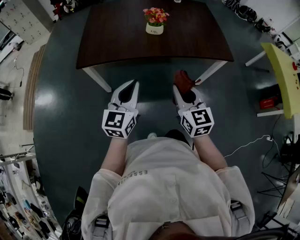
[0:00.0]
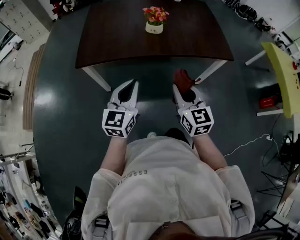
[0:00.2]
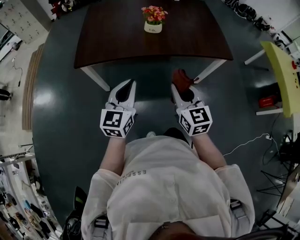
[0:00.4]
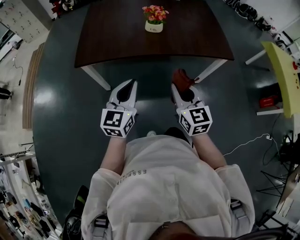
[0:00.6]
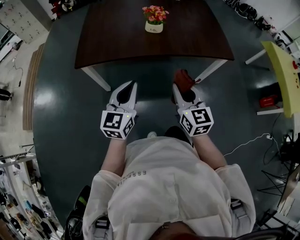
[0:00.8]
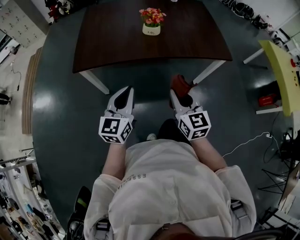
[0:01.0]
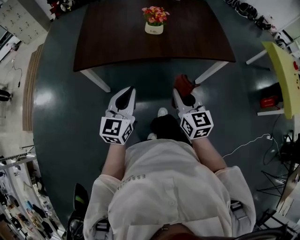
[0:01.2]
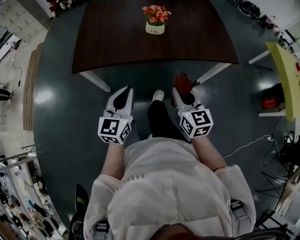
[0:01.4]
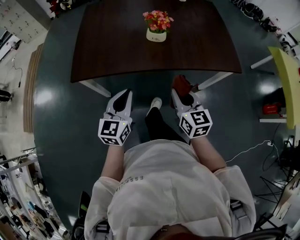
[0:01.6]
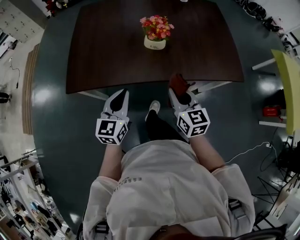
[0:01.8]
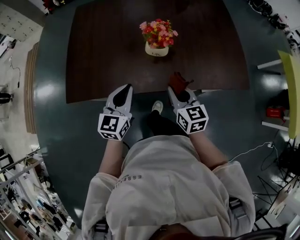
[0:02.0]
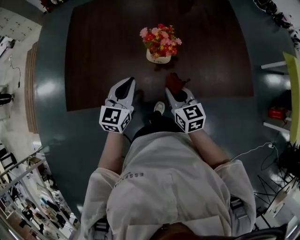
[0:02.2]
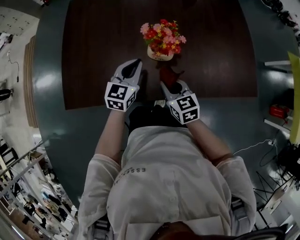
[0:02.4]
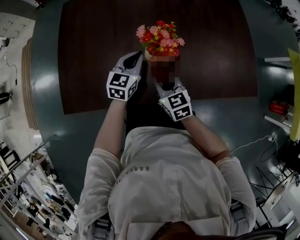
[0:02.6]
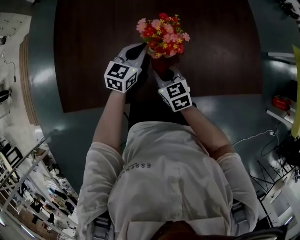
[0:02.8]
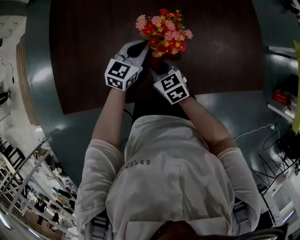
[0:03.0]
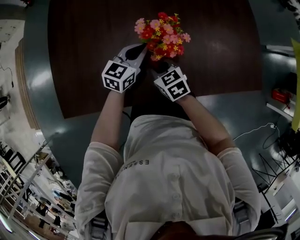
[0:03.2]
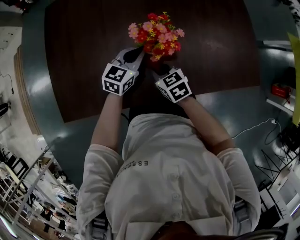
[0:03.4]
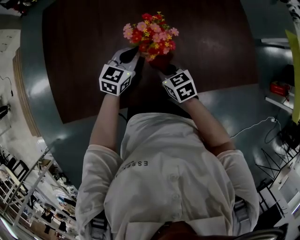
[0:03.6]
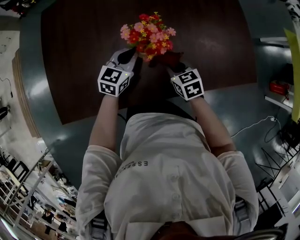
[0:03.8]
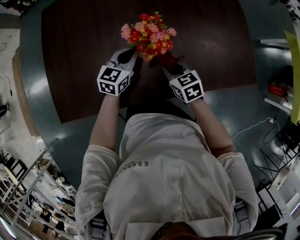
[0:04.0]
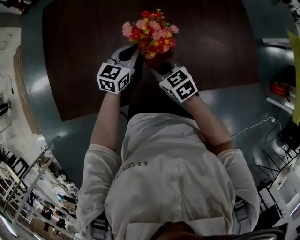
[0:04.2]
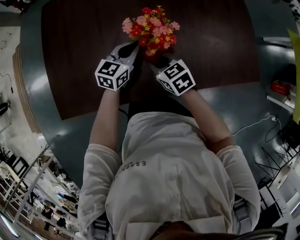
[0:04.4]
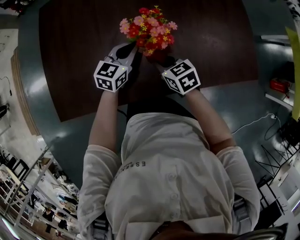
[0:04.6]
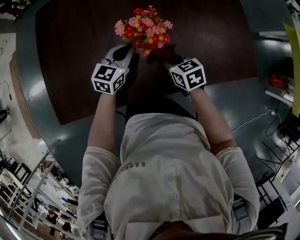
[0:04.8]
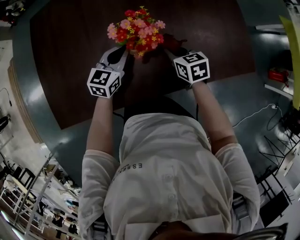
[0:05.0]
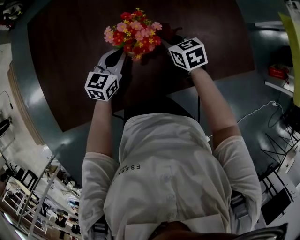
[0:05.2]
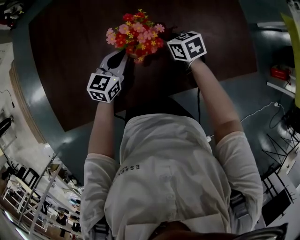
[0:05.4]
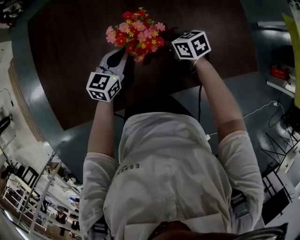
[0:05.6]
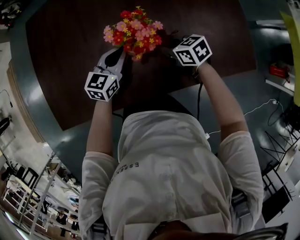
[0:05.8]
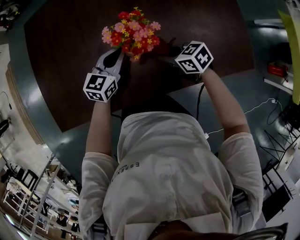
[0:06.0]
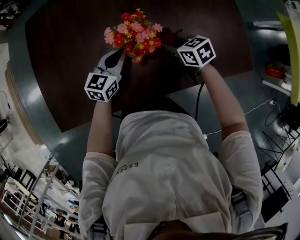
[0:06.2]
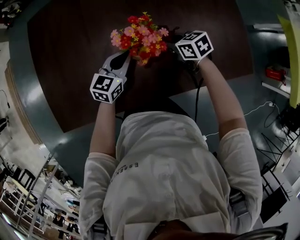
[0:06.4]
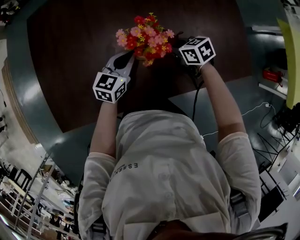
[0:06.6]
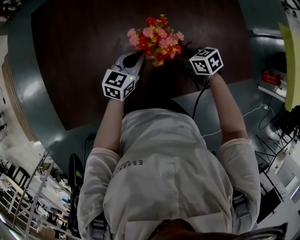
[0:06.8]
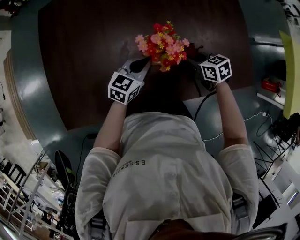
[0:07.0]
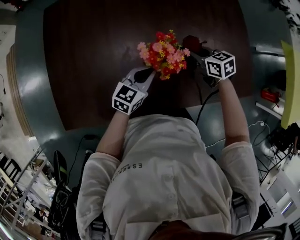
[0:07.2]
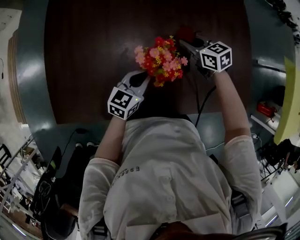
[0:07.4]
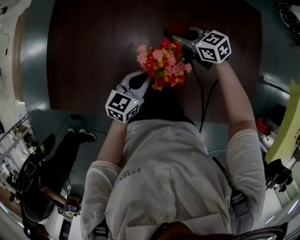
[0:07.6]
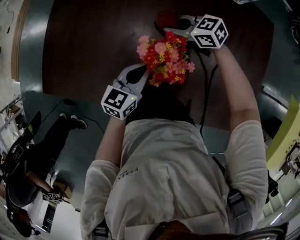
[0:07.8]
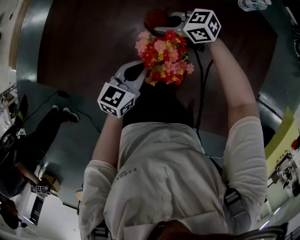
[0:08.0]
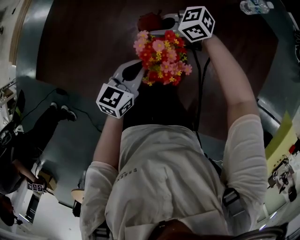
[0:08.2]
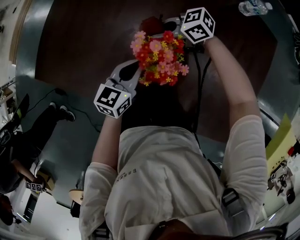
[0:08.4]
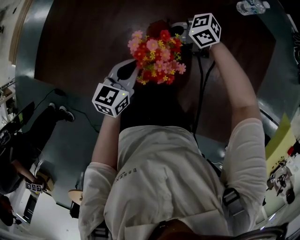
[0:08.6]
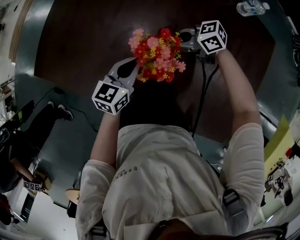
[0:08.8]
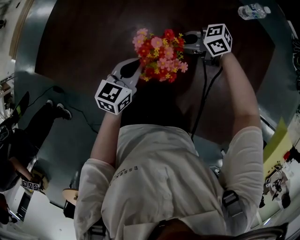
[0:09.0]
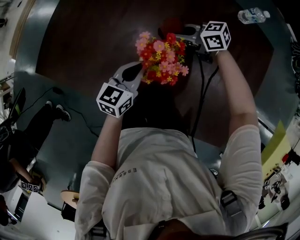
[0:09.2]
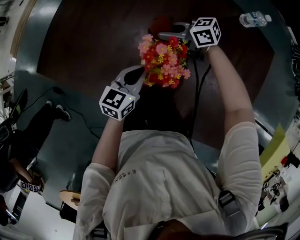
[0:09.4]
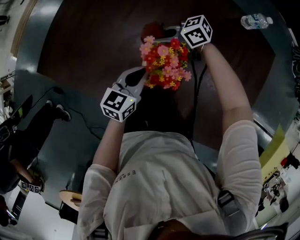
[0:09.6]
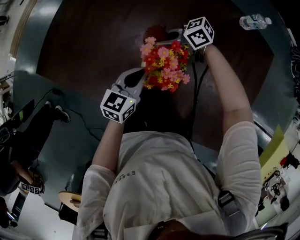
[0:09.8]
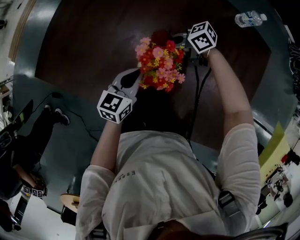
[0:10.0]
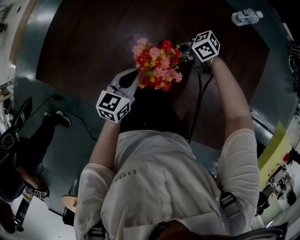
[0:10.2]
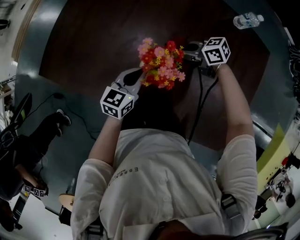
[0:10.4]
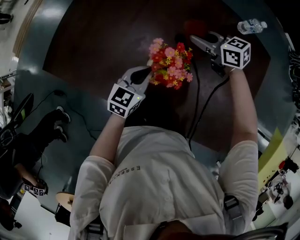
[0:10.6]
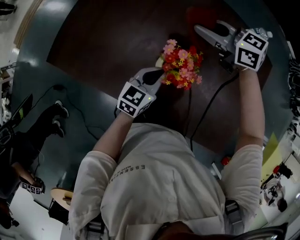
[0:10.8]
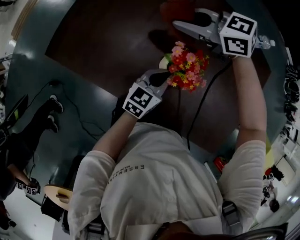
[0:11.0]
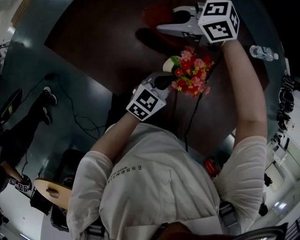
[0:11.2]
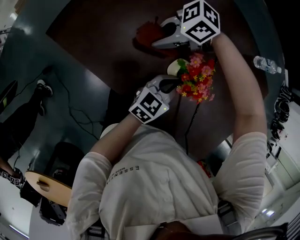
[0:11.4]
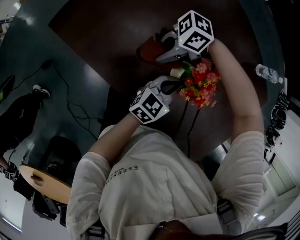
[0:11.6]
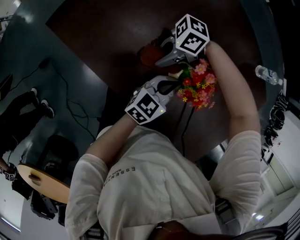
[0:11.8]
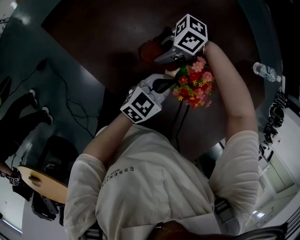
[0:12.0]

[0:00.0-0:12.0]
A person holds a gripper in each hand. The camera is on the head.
0:00.0 to 0:01.6: The grippers both shift forward and downward by roughly 15 cm.
0:01.6 to 0:03.0: The left gripper heads forward, covering roughly 40 cm, and swivels approximately 20 degrees; the right gripper travels forward and downward by roughly 35 cm, and rotates about 30 degrees.
0:03.0 to 0:04.4: The right gripper travels to the right and back again, some 10 cm each way.
0:04.4 to 0:06.0: The right gripper shifts approximately 10 cm to the right.
0:06.0 to 0:07.6: The right gripper moves forward and backward over some 20 cm, changing direction 2 times, and changes its angle by approximately 20 degrees.
0:07.6 to 0:09.0: The left gripper changes its angle by about 20 degrees; the right gripper rotates some 40 degrees.
0:10.4 to 0:12.0: The right gripper reaches about 20 cm upward, then returns, and swivels some 60 degrees.

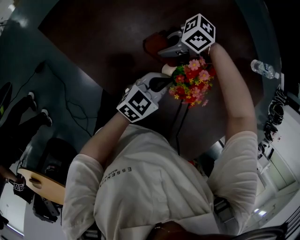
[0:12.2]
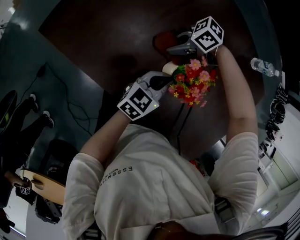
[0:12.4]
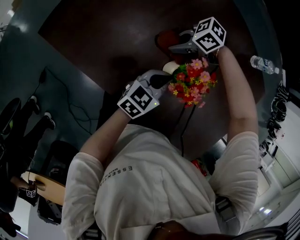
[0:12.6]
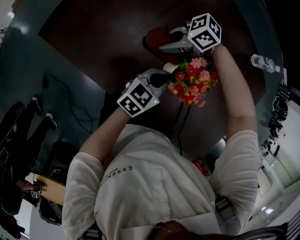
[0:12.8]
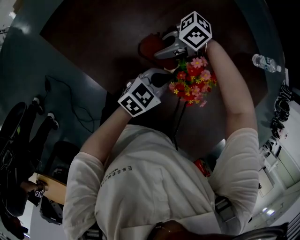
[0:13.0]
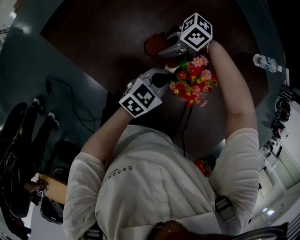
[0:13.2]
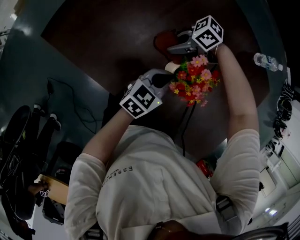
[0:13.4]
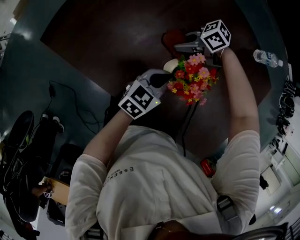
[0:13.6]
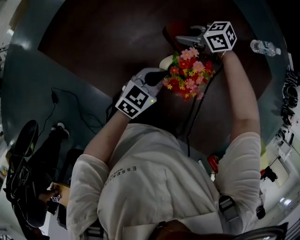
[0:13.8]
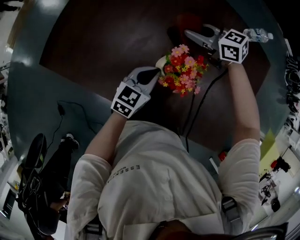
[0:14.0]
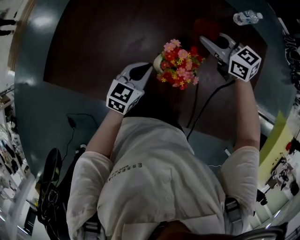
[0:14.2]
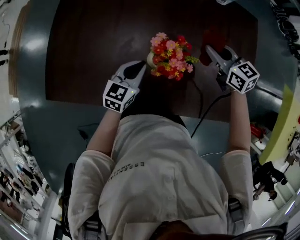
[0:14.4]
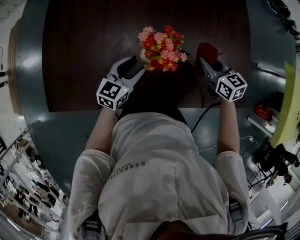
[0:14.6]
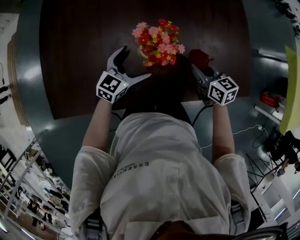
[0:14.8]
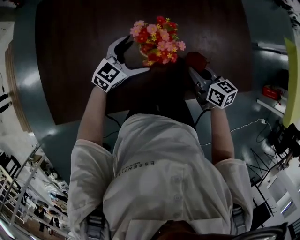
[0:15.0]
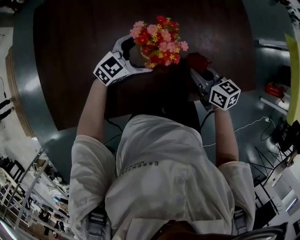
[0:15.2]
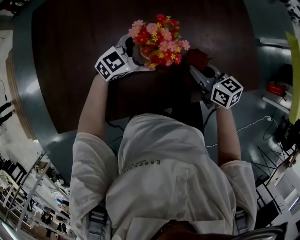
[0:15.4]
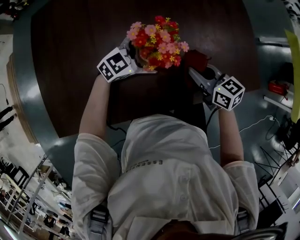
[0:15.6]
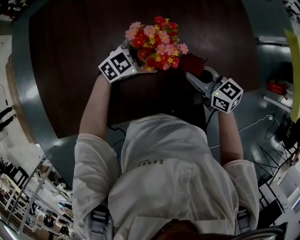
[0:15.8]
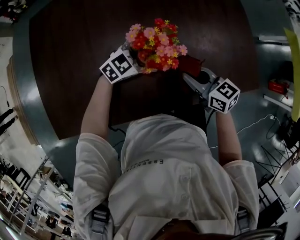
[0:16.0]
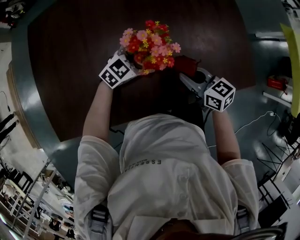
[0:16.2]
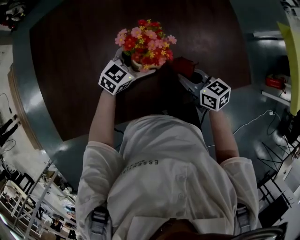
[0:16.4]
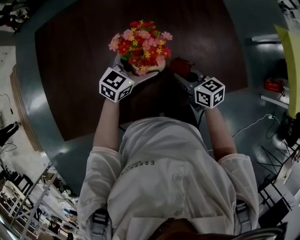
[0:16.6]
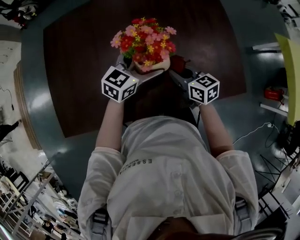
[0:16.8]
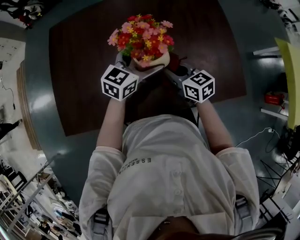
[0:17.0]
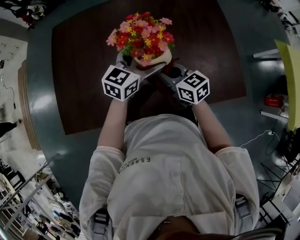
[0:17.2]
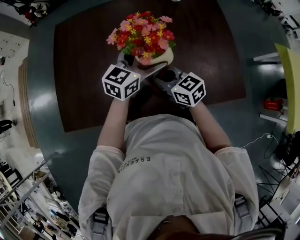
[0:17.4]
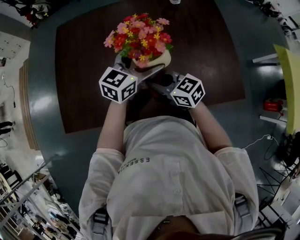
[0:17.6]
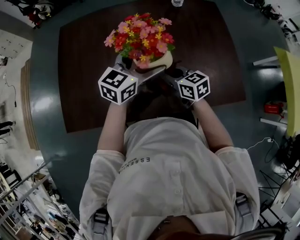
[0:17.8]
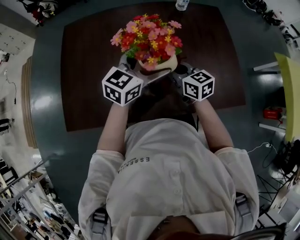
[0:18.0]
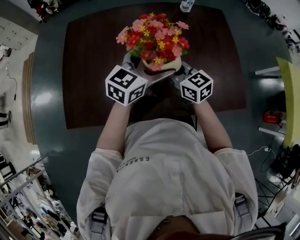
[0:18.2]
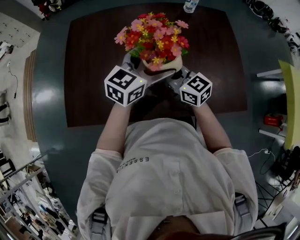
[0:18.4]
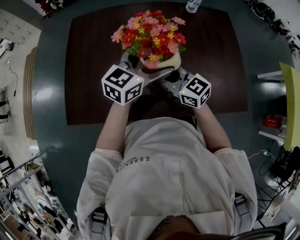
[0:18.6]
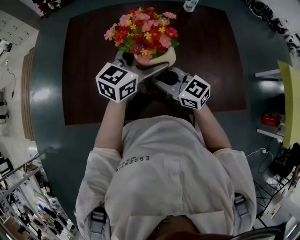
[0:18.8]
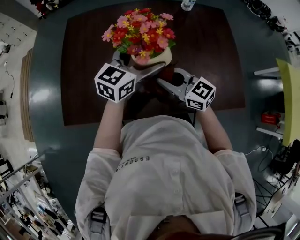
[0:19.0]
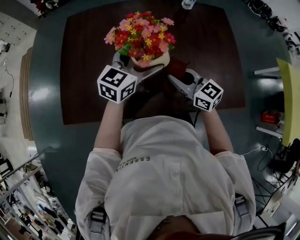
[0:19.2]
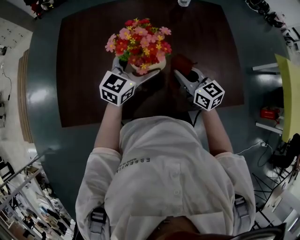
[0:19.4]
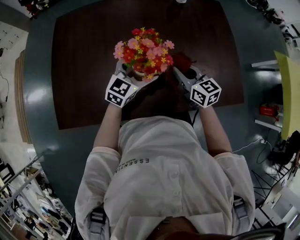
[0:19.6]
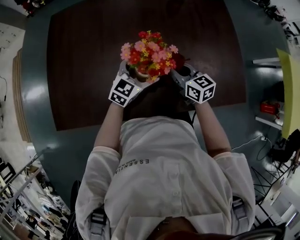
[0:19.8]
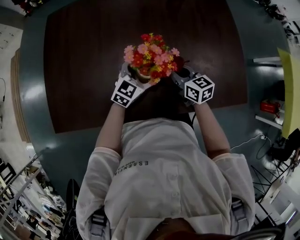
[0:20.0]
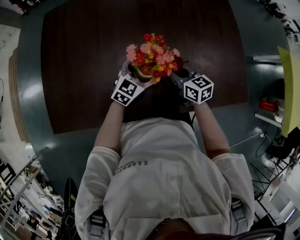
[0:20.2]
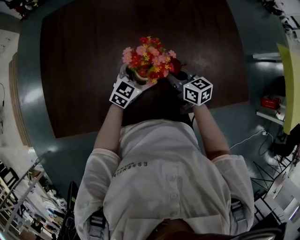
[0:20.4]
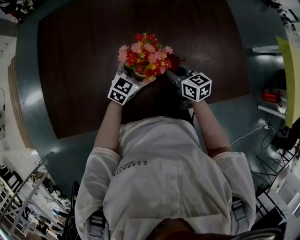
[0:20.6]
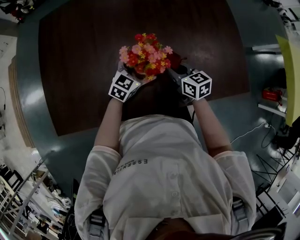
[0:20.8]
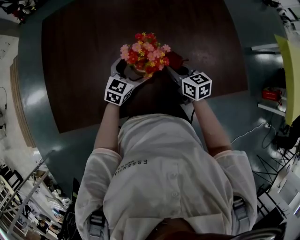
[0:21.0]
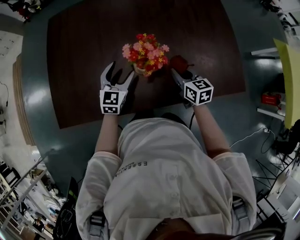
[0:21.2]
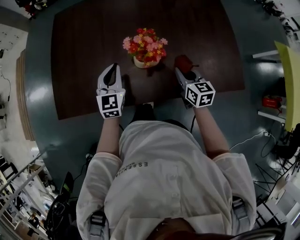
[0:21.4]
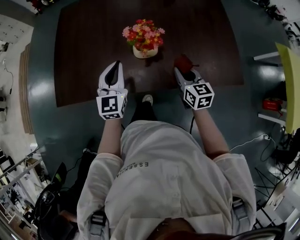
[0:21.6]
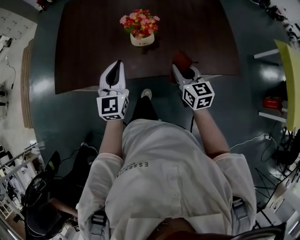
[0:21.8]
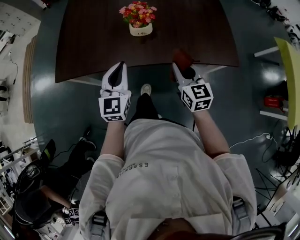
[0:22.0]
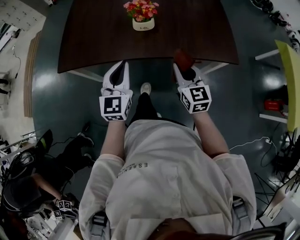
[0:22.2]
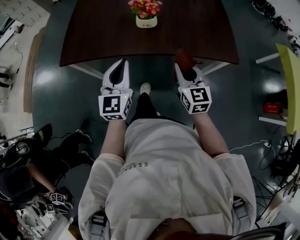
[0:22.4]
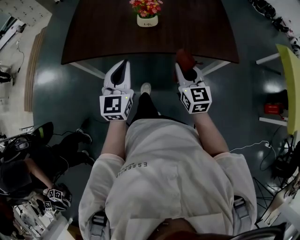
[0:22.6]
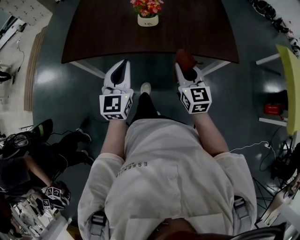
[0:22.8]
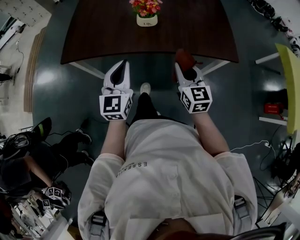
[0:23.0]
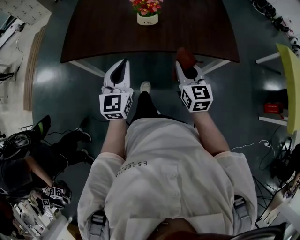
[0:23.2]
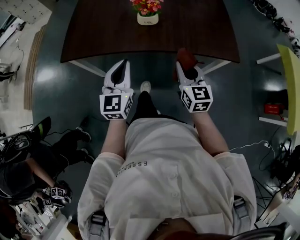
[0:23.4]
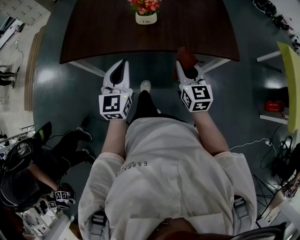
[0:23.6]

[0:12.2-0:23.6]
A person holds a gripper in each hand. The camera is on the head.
0:12.2 to 0:13.6: The right gripper moves roughly 10 cm.
0:13.6 to 0:15.0: The left gripper changes its angle by some 50 degrees, and opens its fingers. The right gripper goes upward and returns, roughly 15 cm each way, and turns by roughly 100 degrees.
0:15.0 to 0:16.4: The left gripper moves approximately 5 cm.
0:16.4 to 0:17.8: The right gripper shifts roughly 10 cm to the left and upward; the left gripper goes about 20 cm upward, and turns by about 20 degrees.
0:17.8 to 0:19.4: The right gripper goes to the left and returns, roughly 5 cm each way. Meanwhile the left gripper ends up some 5 cm from where it was.
0:19.4 to 0:20.8: The two grippers go some 15 cm downward.
0:20.8 to 0:22.2: The grippers both shift backward and upward by some 35 cm. The right gripper swivels about 30 degrees, while the left gripper turns by about 50 degrees, and closes up.
0:22.2 to 0:23.6: The grippers make only small movements.
